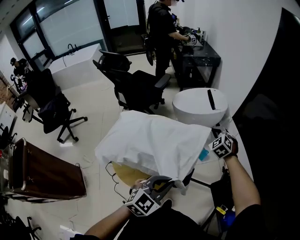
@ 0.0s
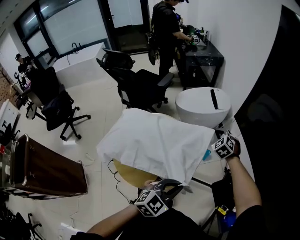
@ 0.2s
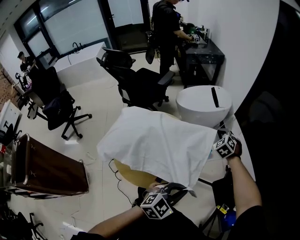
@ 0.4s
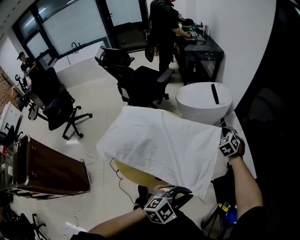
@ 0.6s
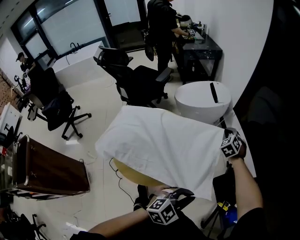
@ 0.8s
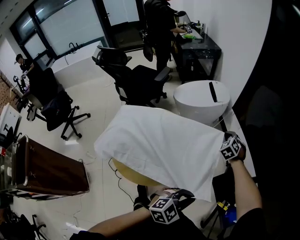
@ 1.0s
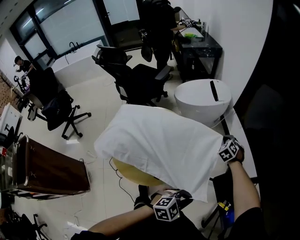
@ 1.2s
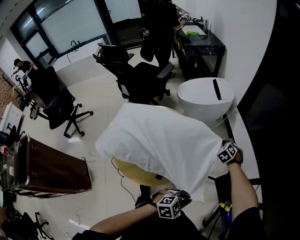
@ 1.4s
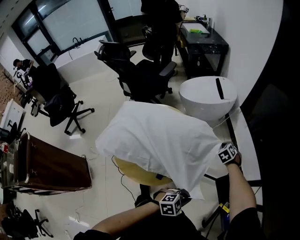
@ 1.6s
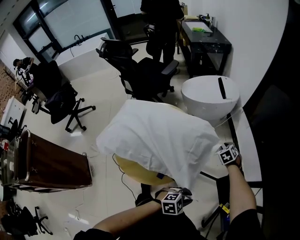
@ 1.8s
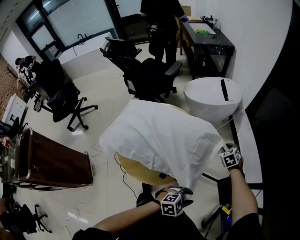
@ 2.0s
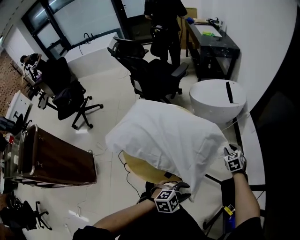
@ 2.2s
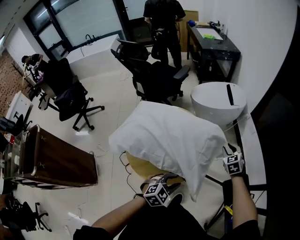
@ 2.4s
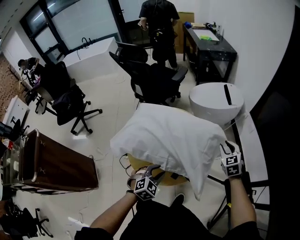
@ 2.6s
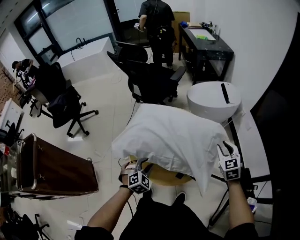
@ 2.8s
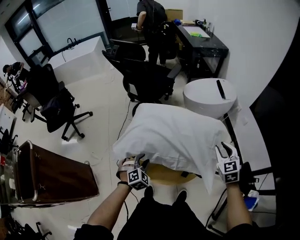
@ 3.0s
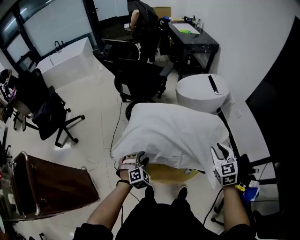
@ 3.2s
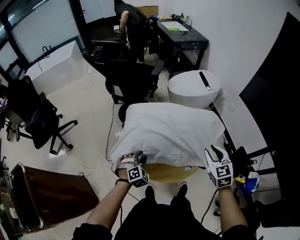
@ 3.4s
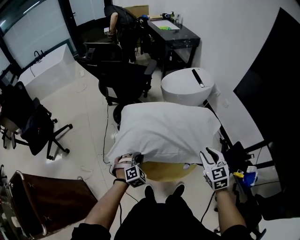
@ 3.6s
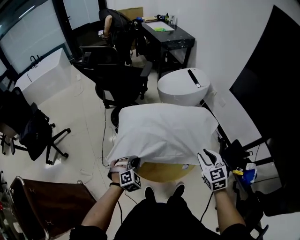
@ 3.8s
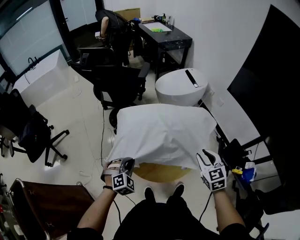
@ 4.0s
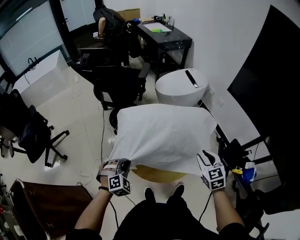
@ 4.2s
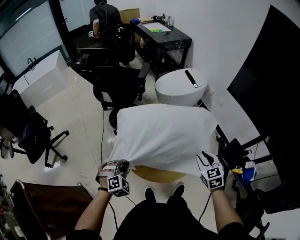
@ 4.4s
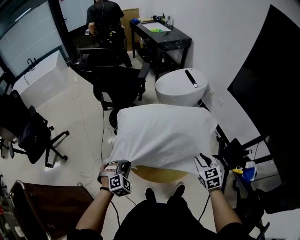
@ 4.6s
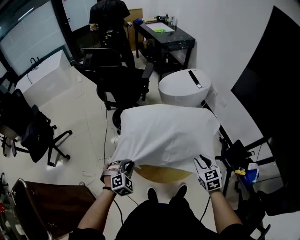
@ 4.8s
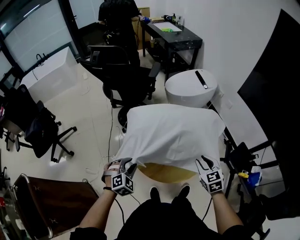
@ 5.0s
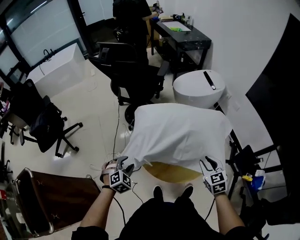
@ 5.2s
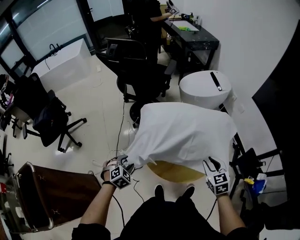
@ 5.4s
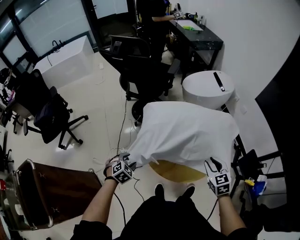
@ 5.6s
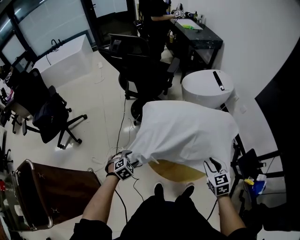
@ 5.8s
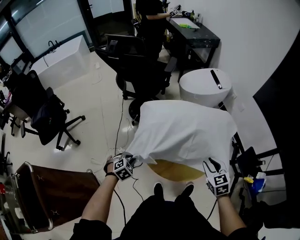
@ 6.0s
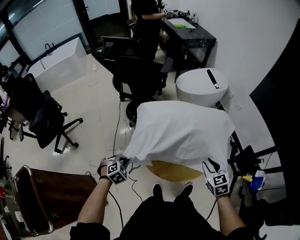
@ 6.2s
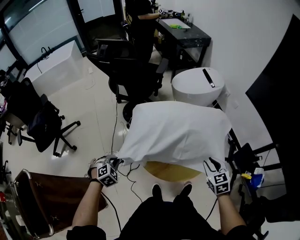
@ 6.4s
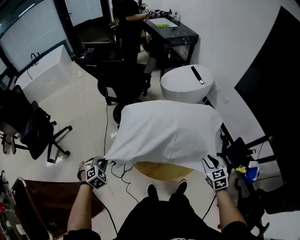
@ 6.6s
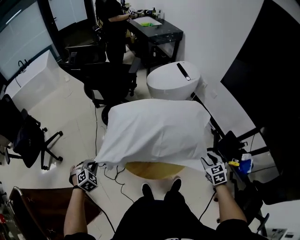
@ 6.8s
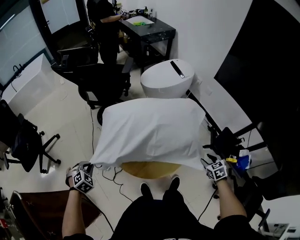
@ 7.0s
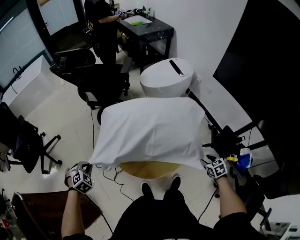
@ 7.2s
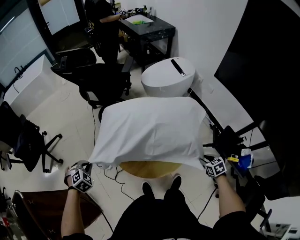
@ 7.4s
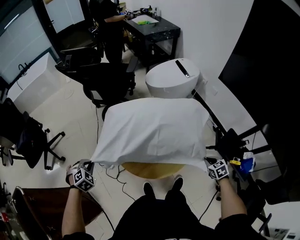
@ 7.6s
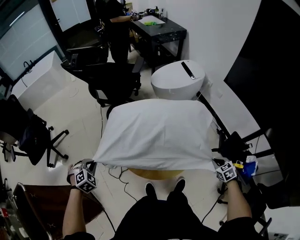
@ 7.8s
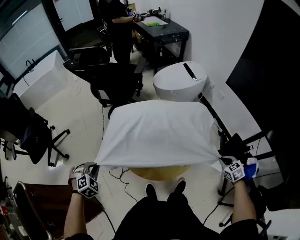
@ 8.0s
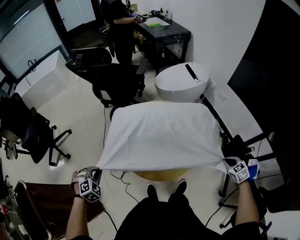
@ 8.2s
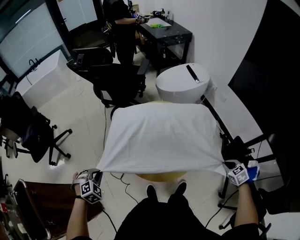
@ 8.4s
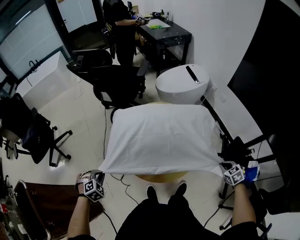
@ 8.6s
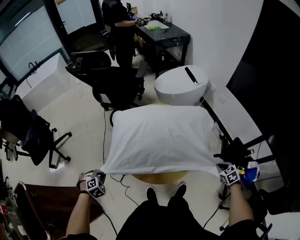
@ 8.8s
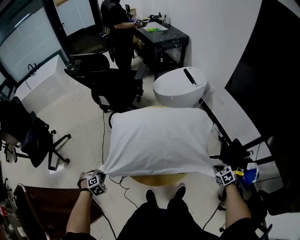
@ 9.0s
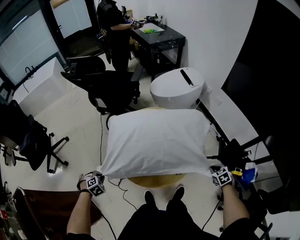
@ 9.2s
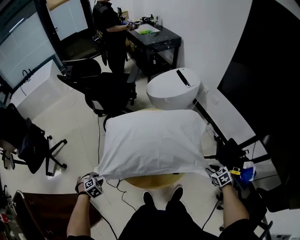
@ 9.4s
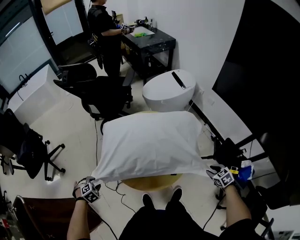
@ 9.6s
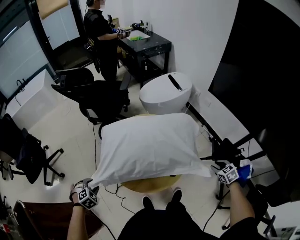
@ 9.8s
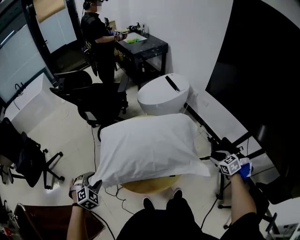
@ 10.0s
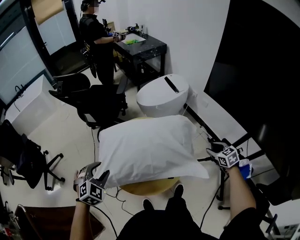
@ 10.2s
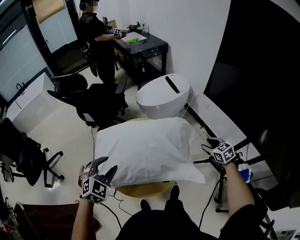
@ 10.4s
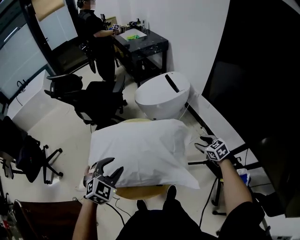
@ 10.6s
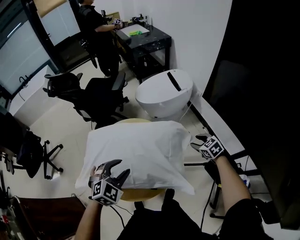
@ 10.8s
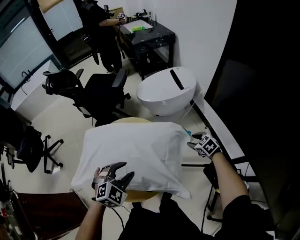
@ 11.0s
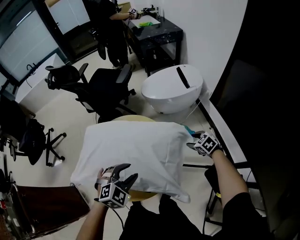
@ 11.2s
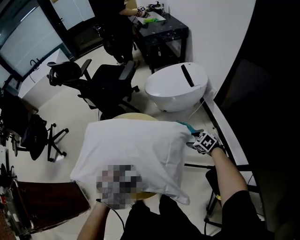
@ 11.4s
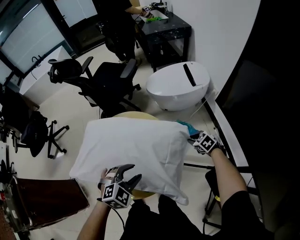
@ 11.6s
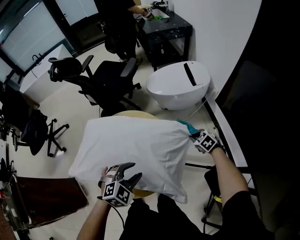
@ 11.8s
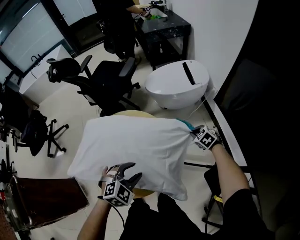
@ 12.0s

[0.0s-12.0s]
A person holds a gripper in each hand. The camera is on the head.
0.0s to 1.6s: The grippers both shift downward and to the right by roughly 25 cm. The right gripper swivels about 20 degrees. The left gripper changes its angle by about 40 degrees.
1.6s to 3.0s: The left gripper changes place by some 40 cm, changes its angle by about 50 degrees, and opens. Meanwhile the right gripper shifts by roughly 30 cm, turns by some 30 degrees, and opens up.
3.0s to 4.4s: The left gripper shifts approximately 10 cm to the left, and closes up. The right gripper is displaced backward and to the left by roughly 15 cm.
4.4s to 6.0s: The left gripper travels downward and to the left by some 15 cm, rotates about 30 degrees, and opens, then closes once more. Meanwhile the right gripper goes roughly 5 cm to the left.
6.0s to 7.6s: The right gripper moves to the right and downward, about 25 cm, changes its angle by approximately 20 degrees, and closes its fingers; the left gripper goes some 10 cm upward and to the left.
7.6s to 9.0s: The right gripper moves about 5 cm upward and comes back; the left gripper moves downward, approximately 10 cm.
9.0s to 10.4s: The left gripper shifts by some 35 cm, angles its fingers upward, by approximately 30 degrees, and opens up; the right gripper shifts by approximately 20 cm, changes its angle by approximately 20 degrees, and opens.
10.4s to 12.0s: The right gripper shifts approximately 20 cm forward and downward, swivels some 40 degrees, and closes its fingers; the left gripper heads to the right and downward, covering approximately 25 cm.

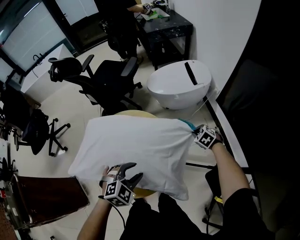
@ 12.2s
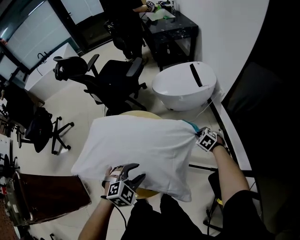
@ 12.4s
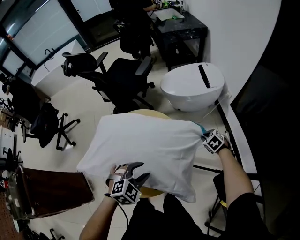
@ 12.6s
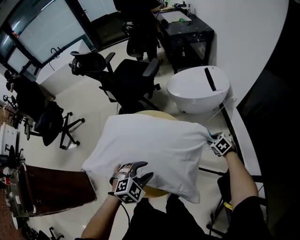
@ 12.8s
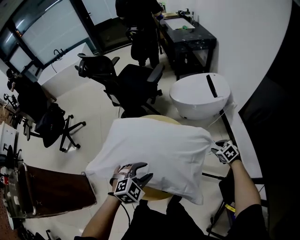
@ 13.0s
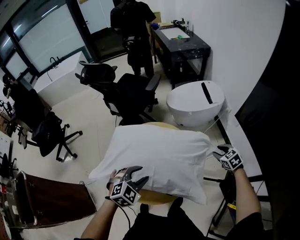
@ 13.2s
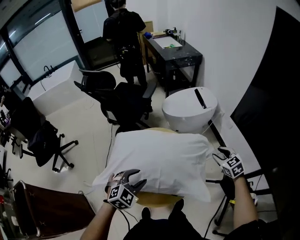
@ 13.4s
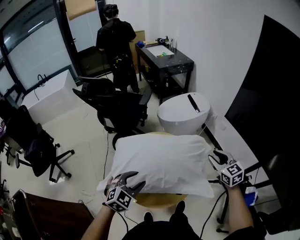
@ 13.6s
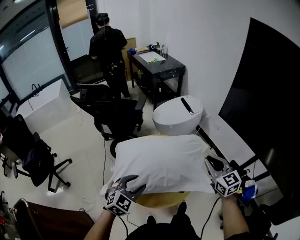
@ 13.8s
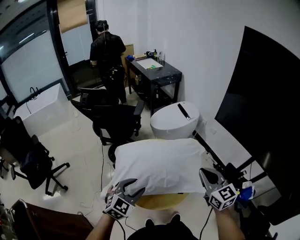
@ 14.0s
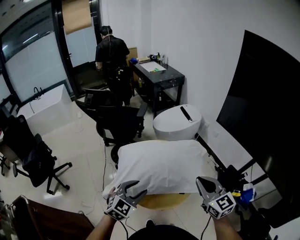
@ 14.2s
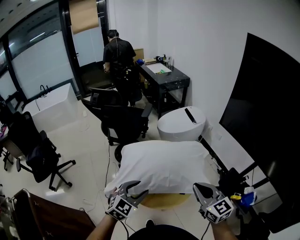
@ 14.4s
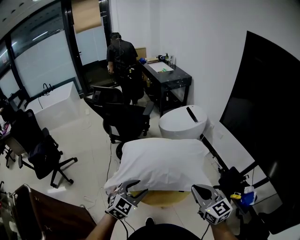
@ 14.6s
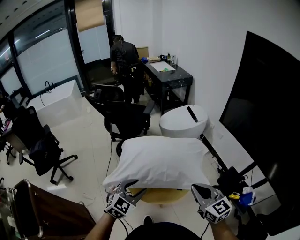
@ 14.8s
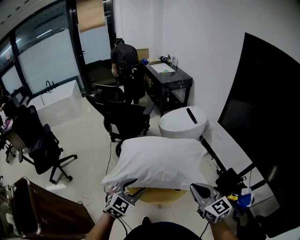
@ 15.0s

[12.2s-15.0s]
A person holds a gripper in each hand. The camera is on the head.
12.2s to 13.6s: The right gripper heads upward, backward and to the left, covering some 35 cm, angles its fingers upward, by about 40 degrees, and opens, while the left gripper travels to the left and upward by approximately 20 cm.
13.6s to 15.0s: The left gripper goes approximately 15 cm backward and upward. The right gripper goes approximately 25 cm backward and to the left, and closes its fingers.

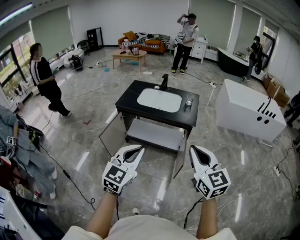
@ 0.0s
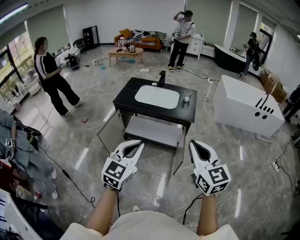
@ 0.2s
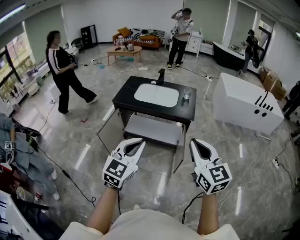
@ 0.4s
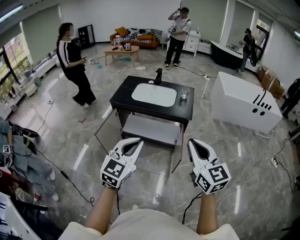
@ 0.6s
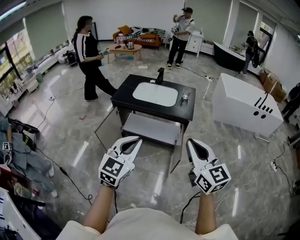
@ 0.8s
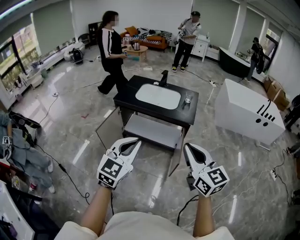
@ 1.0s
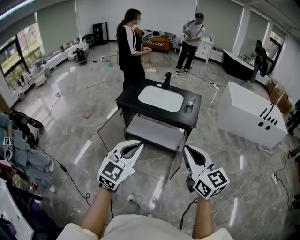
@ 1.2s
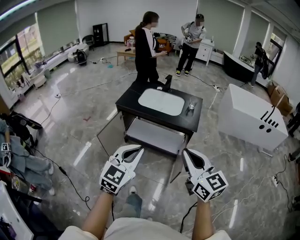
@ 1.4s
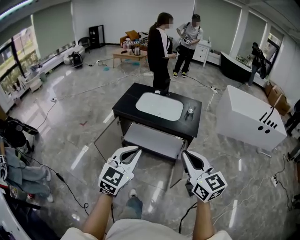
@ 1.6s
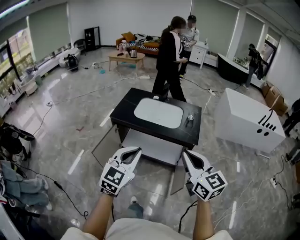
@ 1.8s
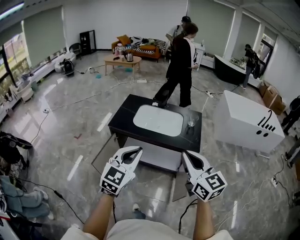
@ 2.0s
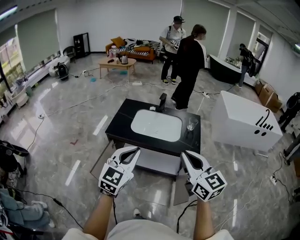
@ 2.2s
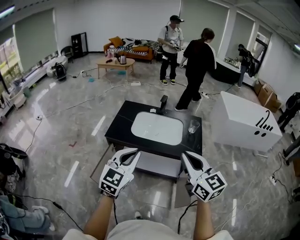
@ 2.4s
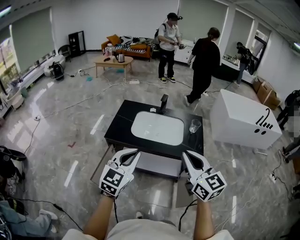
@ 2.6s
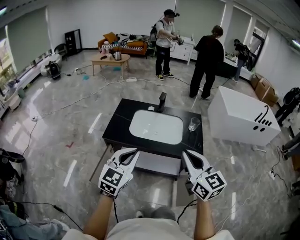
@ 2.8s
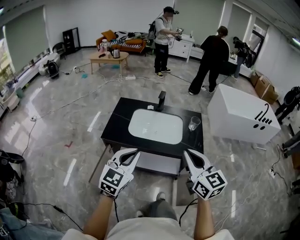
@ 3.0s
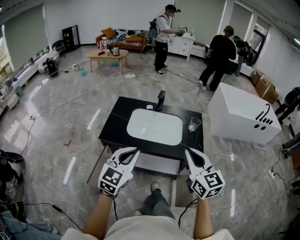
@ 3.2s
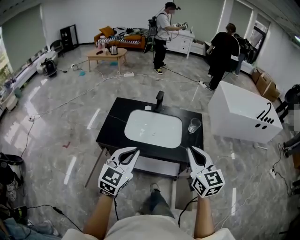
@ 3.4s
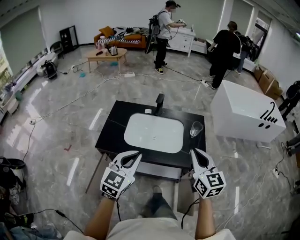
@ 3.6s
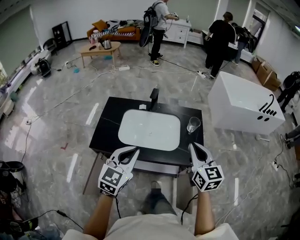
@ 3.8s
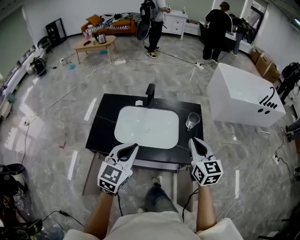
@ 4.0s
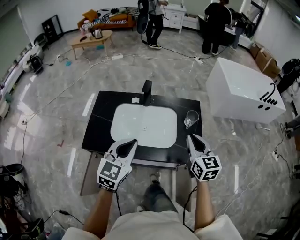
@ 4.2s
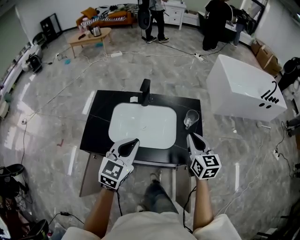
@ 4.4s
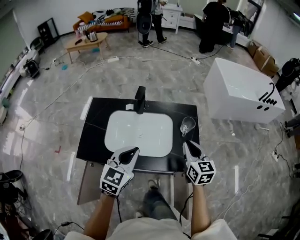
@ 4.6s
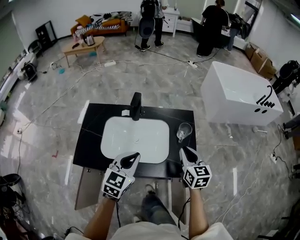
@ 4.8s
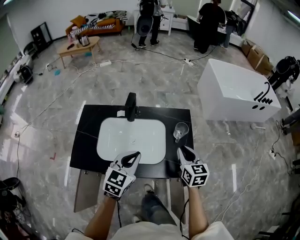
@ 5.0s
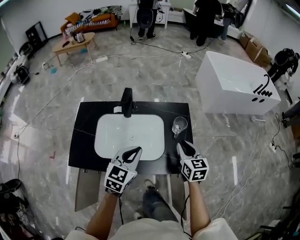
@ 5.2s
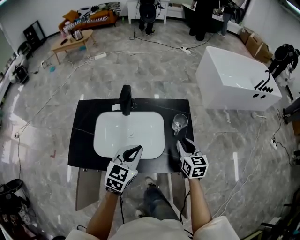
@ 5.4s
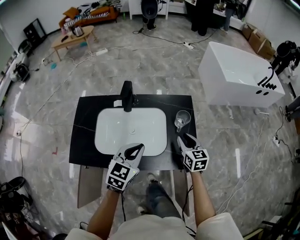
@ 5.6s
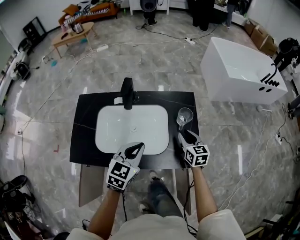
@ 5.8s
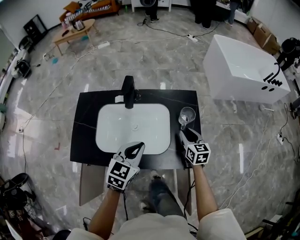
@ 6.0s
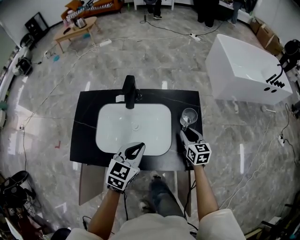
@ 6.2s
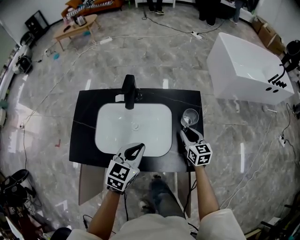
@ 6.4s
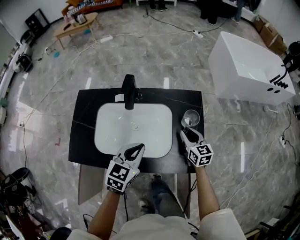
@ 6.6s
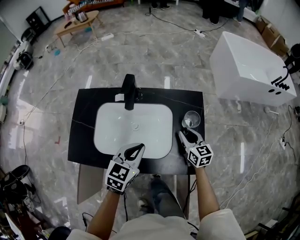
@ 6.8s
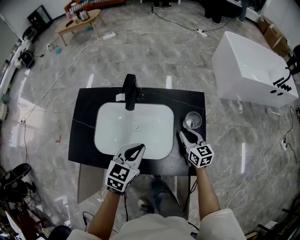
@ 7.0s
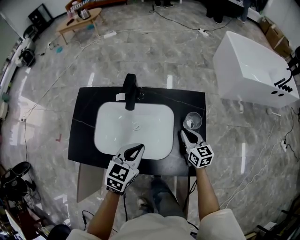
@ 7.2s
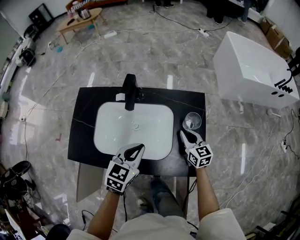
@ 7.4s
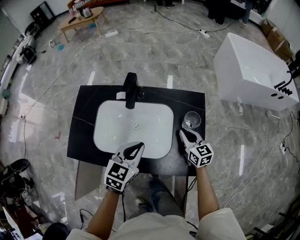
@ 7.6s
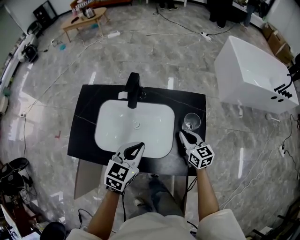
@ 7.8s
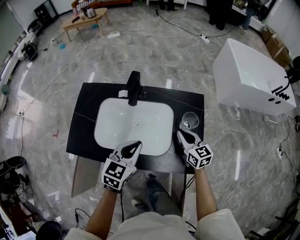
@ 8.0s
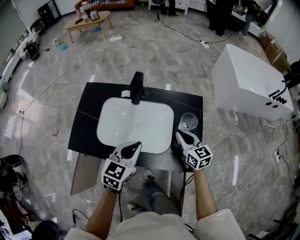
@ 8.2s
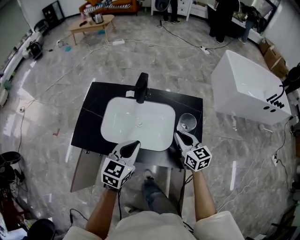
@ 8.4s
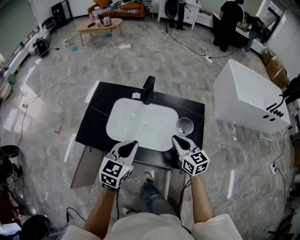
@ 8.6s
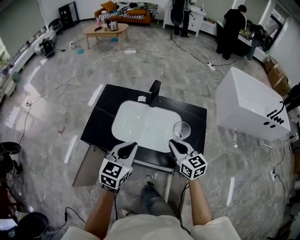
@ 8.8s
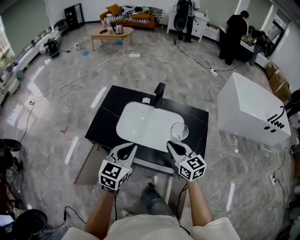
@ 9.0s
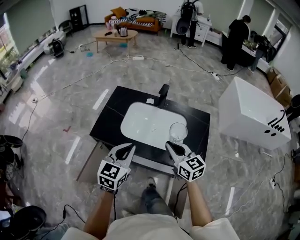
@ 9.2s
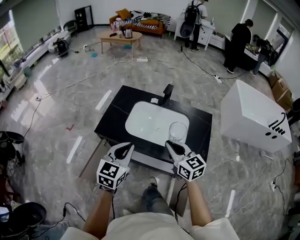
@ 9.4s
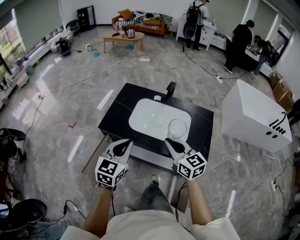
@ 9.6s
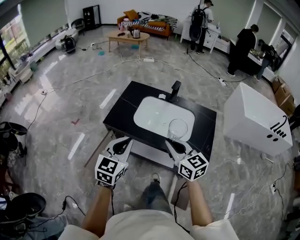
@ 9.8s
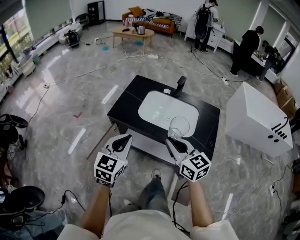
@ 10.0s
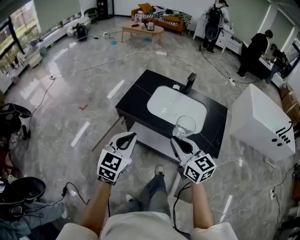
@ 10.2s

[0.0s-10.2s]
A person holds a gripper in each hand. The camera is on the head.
0.0s to 1.4s: The right gripper shifts by approximately 5 cm.
1.4s to 3.0s: Both grippers travel together forward, roughly 35 cm.
3.0s to 4.4s: The left gripper moves forward, approximately 25 cm. Meanwhile the right gripper shifts some 35 cm forward and downward, and turns by some 20 degrees.
4.4s to 5.8s: The right gripper shifts about 20 cm downward and forward, and opens up. Meanwhile the left gripper shifts about 15 cm downward, forward and to the right.
5.8s to 7.2s: The right gripper goes roughly 5 cm forward, and closes up, while the left gripper changes place by some 5 cm.
7.2s to 8.8s: The right gripper heads upward, backward and to the left, covering some 25 cm. The left gripper heads backward, upward and to the left, covering roughly 20 cm.
8.8s to 10.2s: The right gripper is displaced to the left, backward and upward by approximately 30 cm. The left gripper goes about 25 cm to the left and backward.
